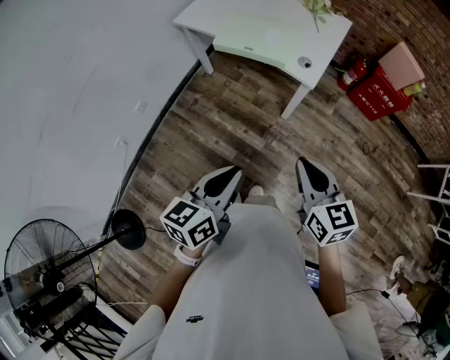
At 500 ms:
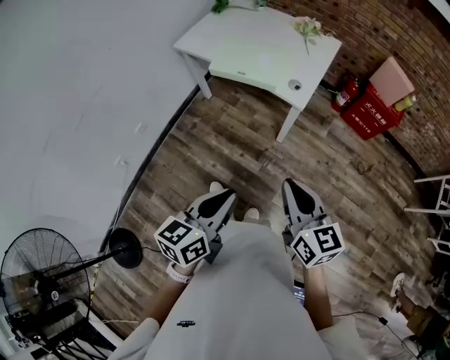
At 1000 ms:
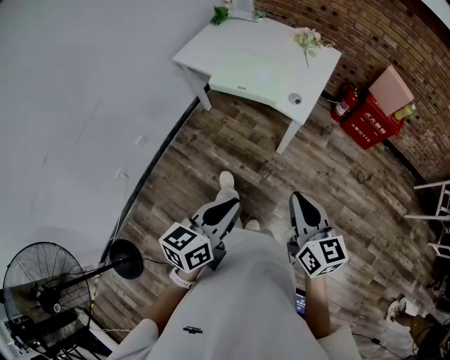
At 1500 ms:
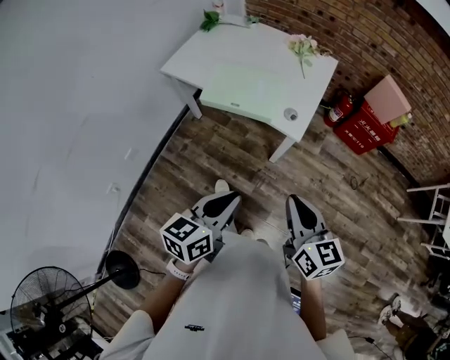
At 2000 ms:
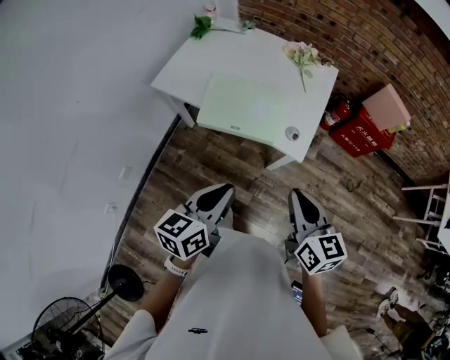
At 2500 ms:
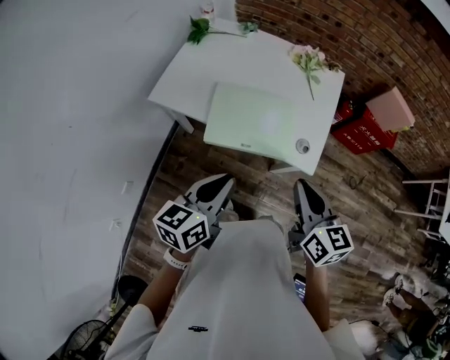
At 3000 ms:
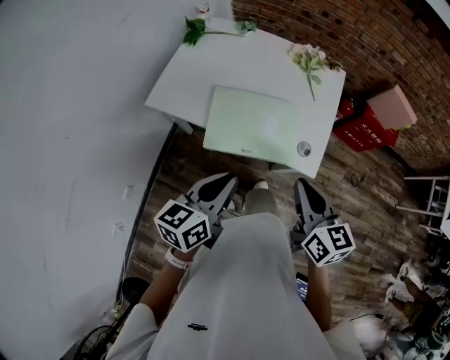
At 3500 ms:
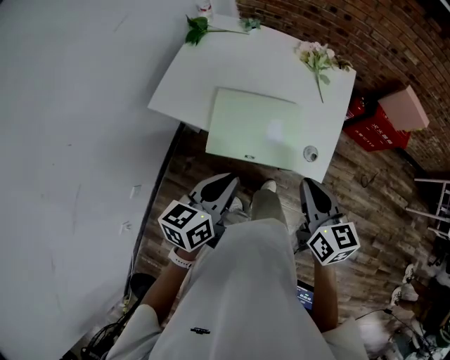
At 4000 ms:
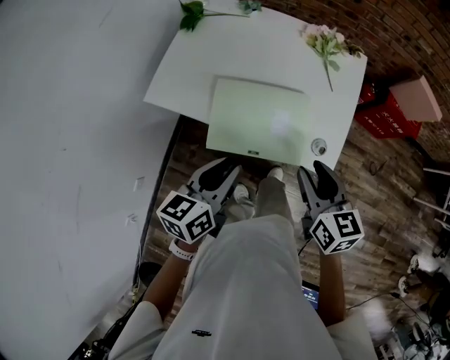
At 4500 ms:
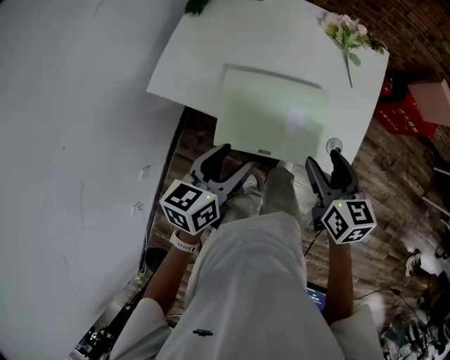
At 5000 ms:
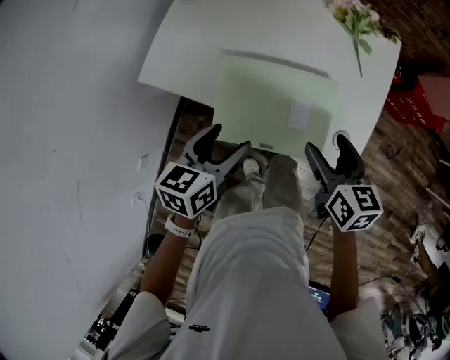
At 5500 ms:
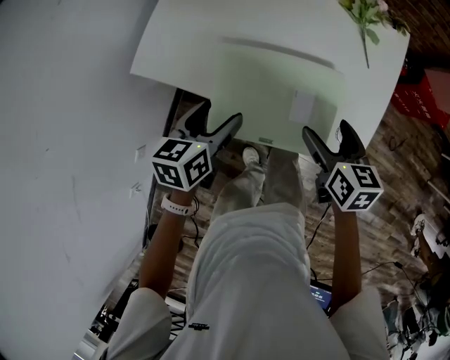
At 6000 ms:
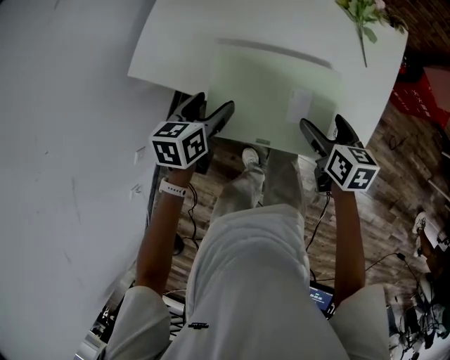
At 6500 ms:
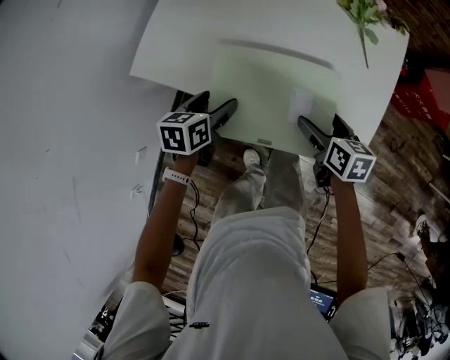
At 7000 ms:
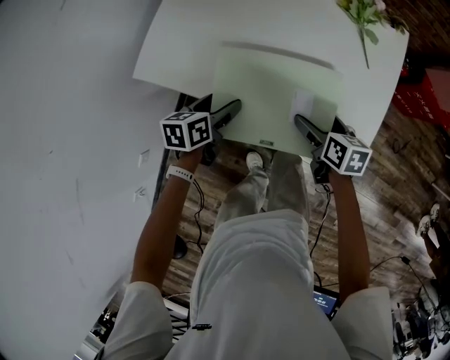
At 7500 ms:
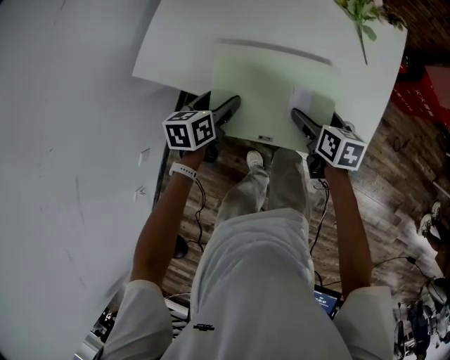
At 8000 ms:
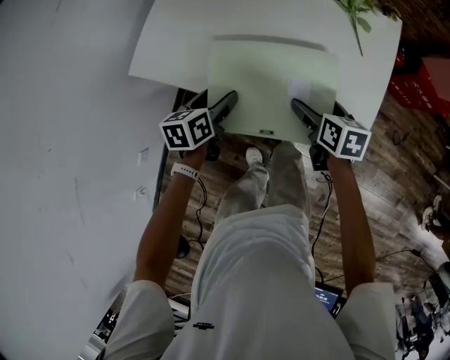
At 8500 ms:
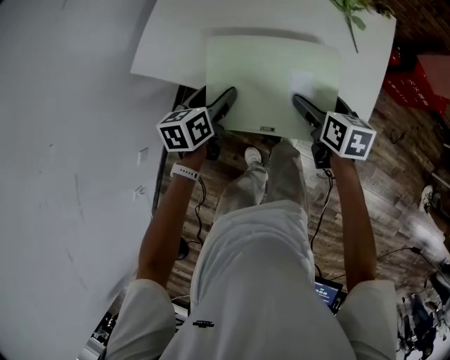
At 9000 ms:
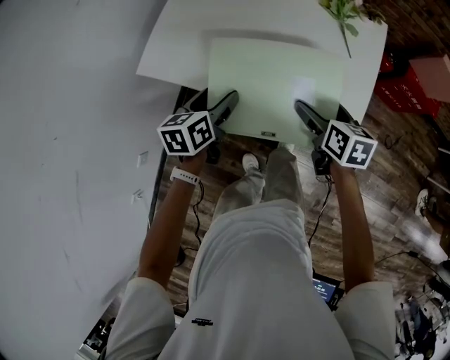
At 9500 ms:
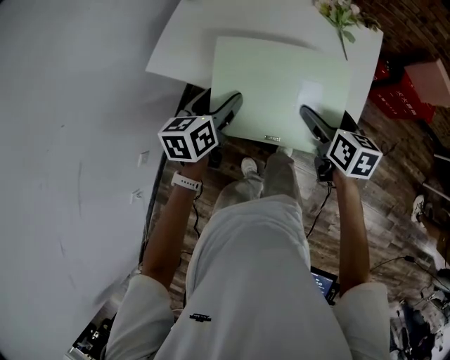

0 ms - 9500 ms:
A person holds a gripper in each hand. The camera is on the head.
0 ms - 2000 ms: Both grippers move forward, roughly 25 cm.
2000 ms - 4000 ms: The left gripper shifts about 20 cm forward and to the left. Meanwhile the right gripper moves forward, some 20 cm.
4000 ms - 5500 ms: The right gripper is displaced downward and forward by about 15 cm, and opens its fingers, while the left gripper heads downward, forward and to the left, covering some 15 cm, and opens up.
5500 ms - 7500 ms: Both grippers travel together downward, about 10 cm.
7500 ms - 9500 ms: Both grippers travel together upward, approximately 15 cm.

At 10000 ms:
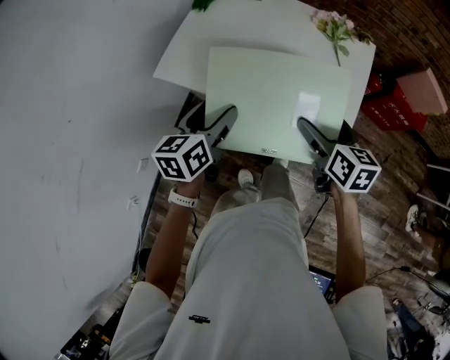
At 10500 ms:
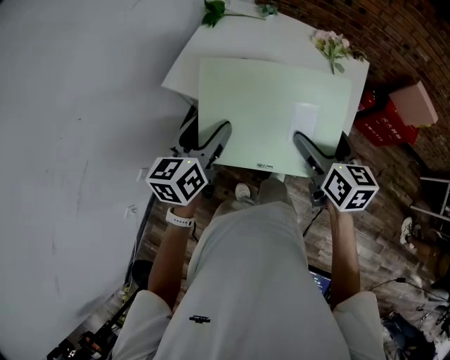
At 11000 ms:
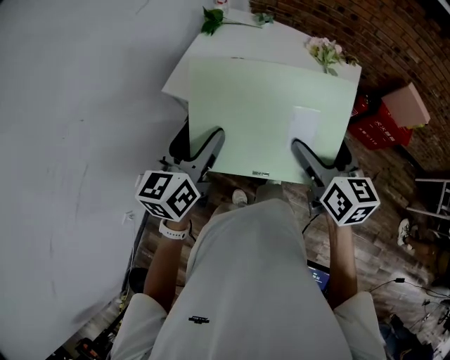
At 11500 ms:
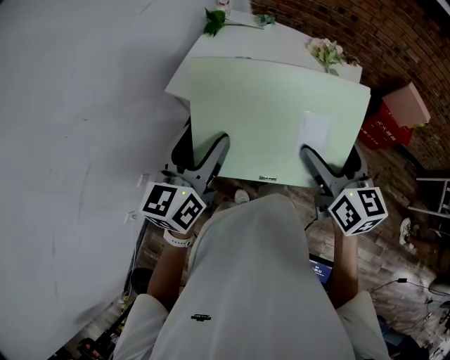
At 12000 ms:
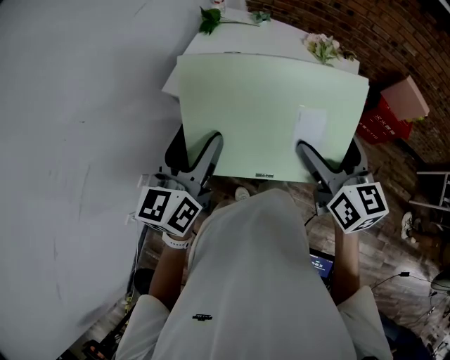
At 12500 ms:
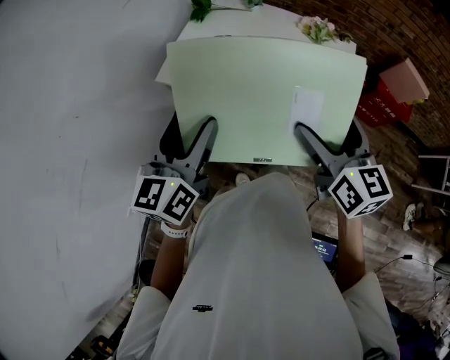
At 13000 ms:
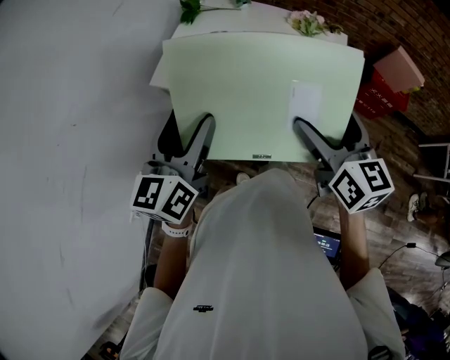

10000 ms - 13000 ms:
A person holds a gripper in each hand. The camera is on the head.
10000 ms - 11500 ms: Both grippers travel together upward and backward, roughly 15 cm. The left gripper rotates roughly 20 degrees. Meanwhile the right gripper rotates some 20 degrees.
11500 ms - 13000 ms: There are only small adjustments of the grippers.

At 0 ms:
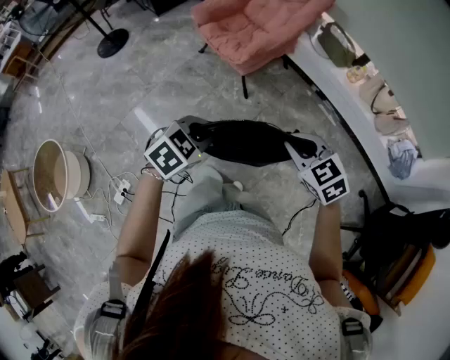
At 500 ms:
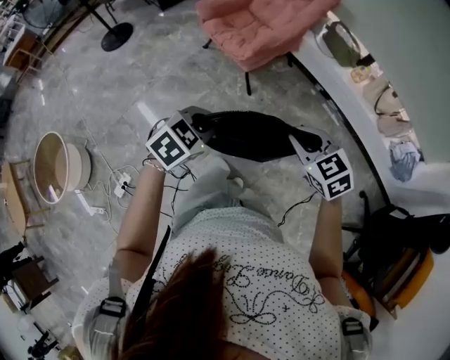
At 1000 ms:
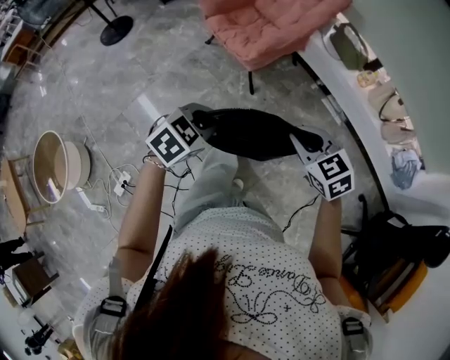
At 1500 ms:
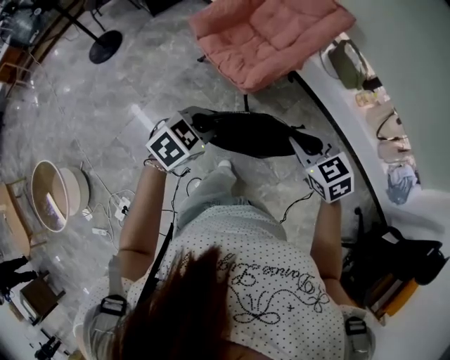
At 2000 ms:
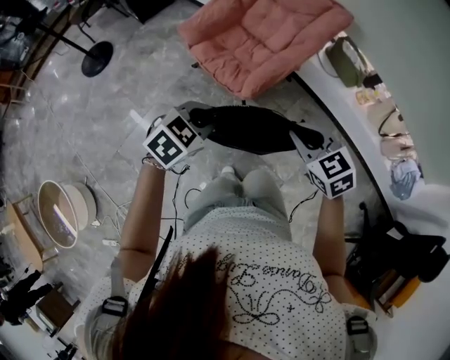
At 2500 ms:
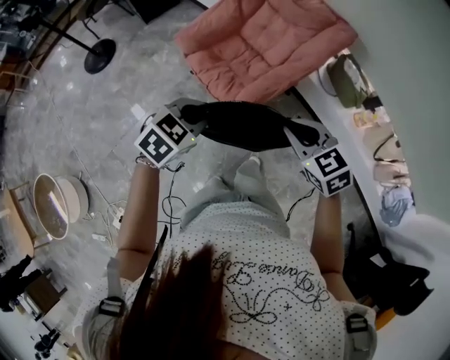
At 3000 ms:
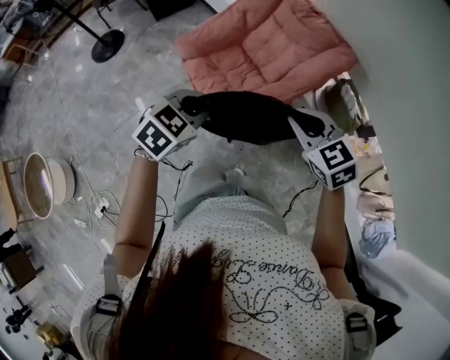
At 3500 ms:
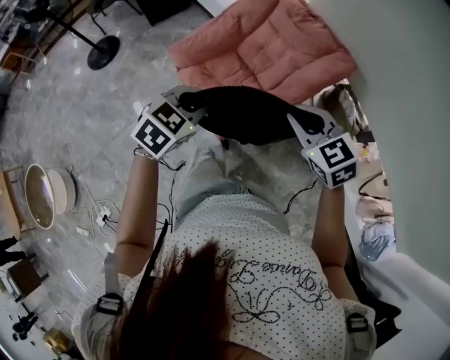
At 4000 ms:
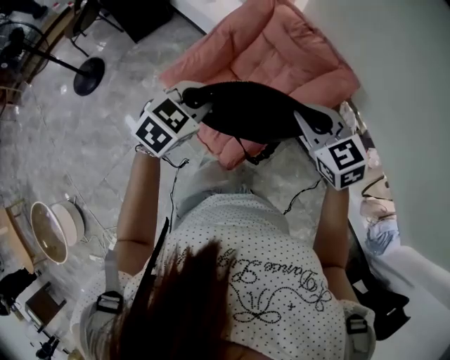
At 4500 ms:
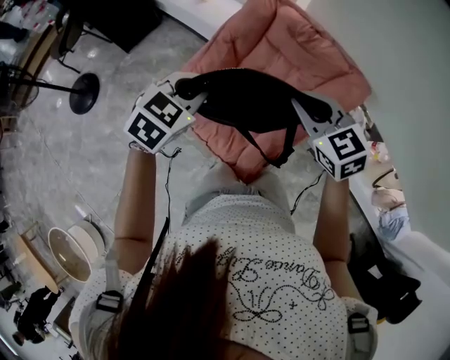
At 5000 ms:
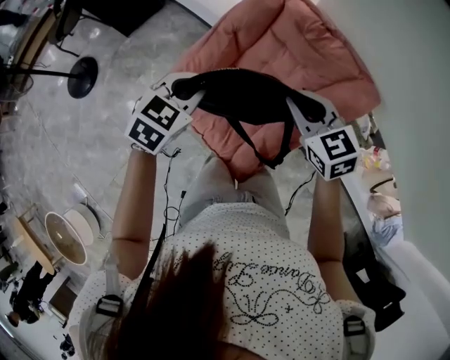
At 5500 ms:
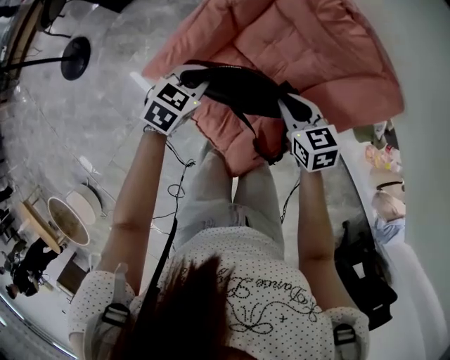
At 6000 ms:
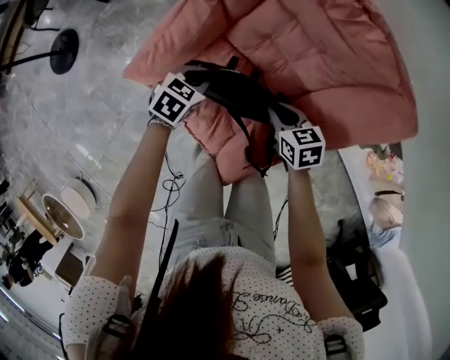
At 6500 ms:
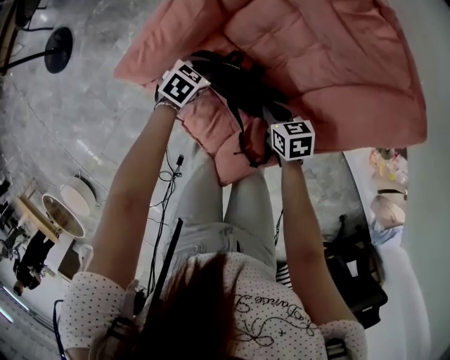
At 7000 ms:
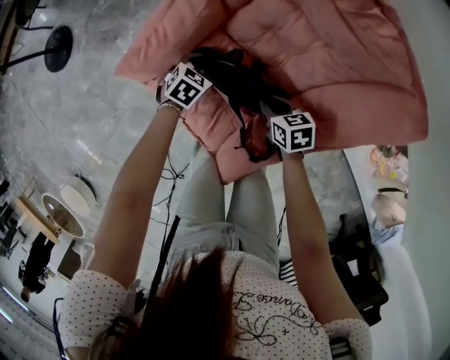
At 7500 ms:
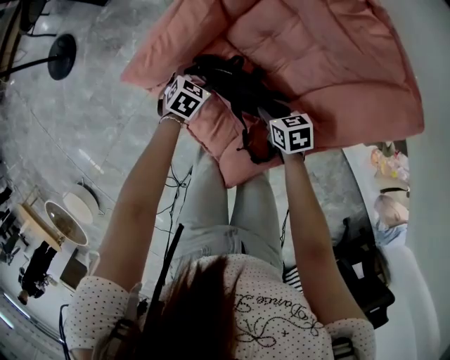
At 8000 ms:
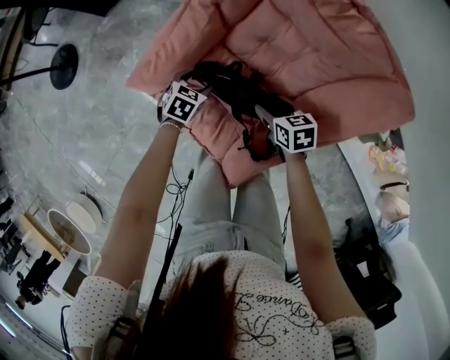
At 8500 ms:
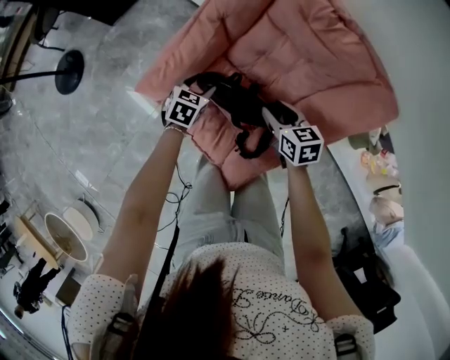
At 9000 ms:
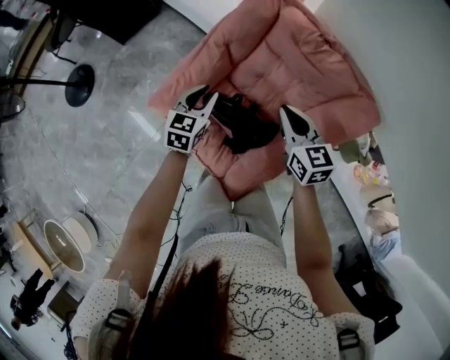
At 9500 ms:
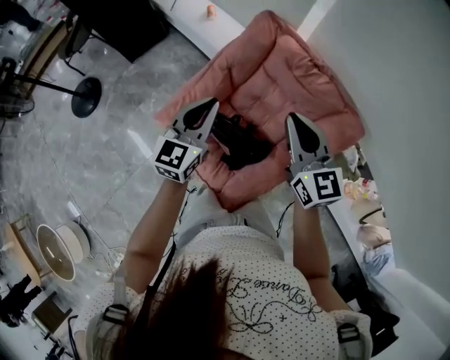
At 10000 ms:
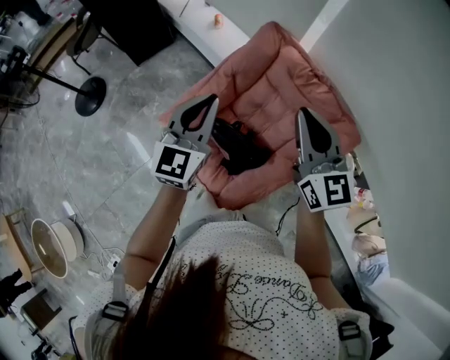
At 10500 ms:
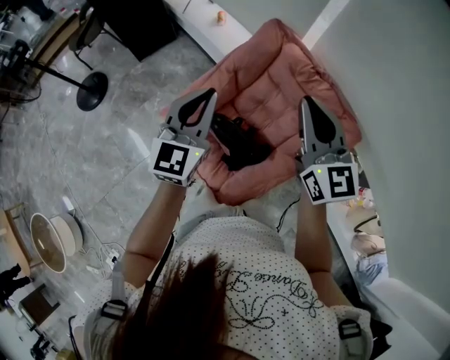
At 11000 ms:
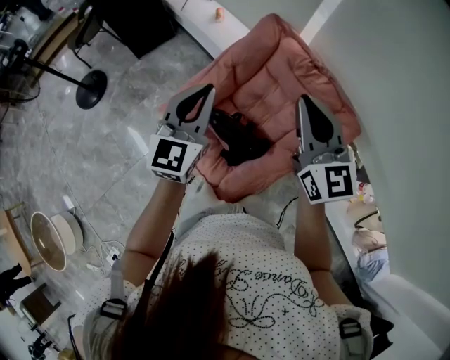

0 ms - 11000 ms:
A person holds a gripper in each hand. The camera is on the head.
0 ms - 2000 ms: Both grippers travel together forward, approximately 35 cm.
2000 ms - 3500 ms: The right gripper shifts about 30 cm forward; the left gripper shifts some 25 cm forward and to the right.
3500 ms - 5500 ms: The grippers both shift forward and downward by about 35 cm. The right gripper swivels about 30 degrees.
5500 ms - 7500 ms: The two grippers go some 20 cm downward. The right gripper rotates about 20 degrees, and opens, while the left gripper opens up.
7500 ms - 9000 ms: Both grippers move upward, some 30 cm. The right gripper rotates about 40 degrees, and closes. The left gripper tilts its fingers about 30 degrees upward, and closes its fingers.
9000 ms - 11000 ms: Both grippers travel together upward, some 25 cm. The right gripper rotates approximately 30 degrees. The left gripper rotates roughly 30 degrees, and closes.

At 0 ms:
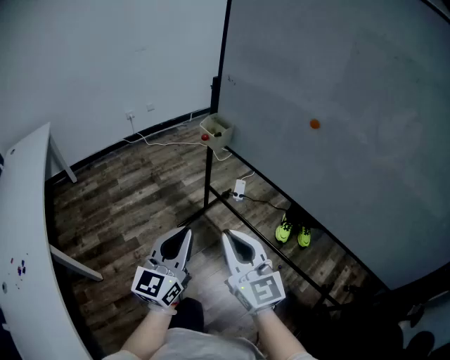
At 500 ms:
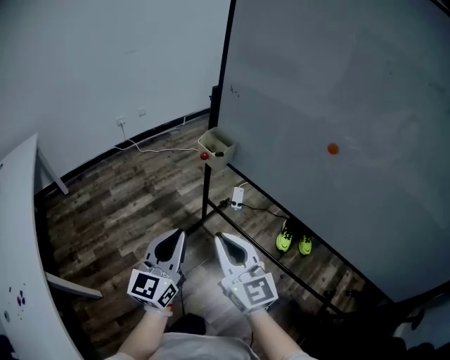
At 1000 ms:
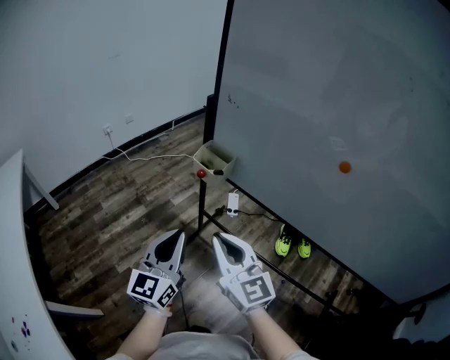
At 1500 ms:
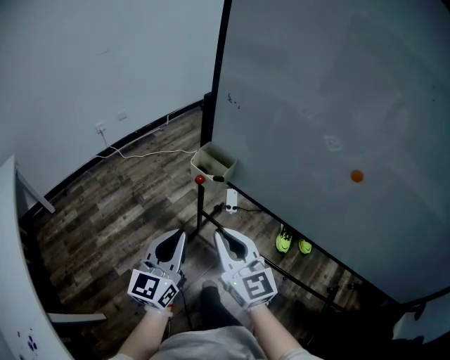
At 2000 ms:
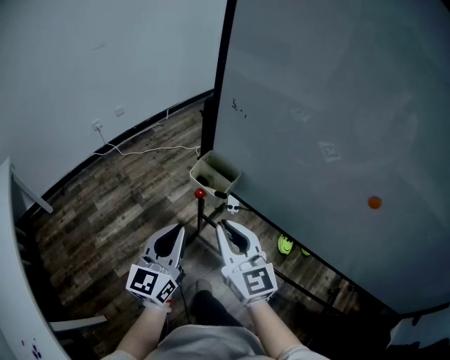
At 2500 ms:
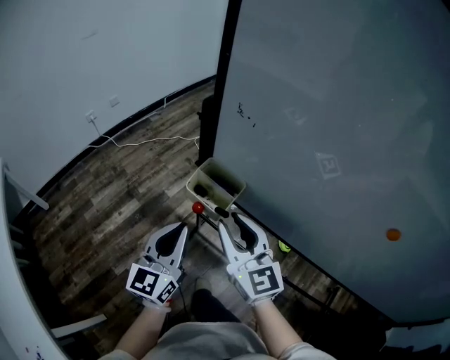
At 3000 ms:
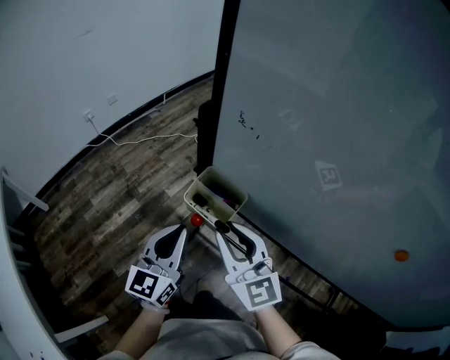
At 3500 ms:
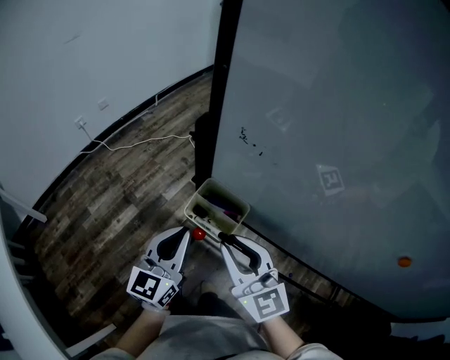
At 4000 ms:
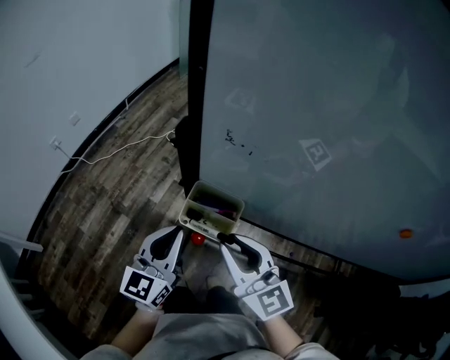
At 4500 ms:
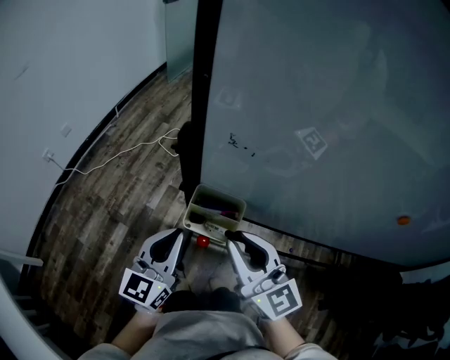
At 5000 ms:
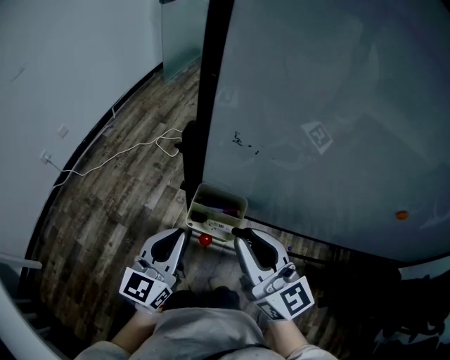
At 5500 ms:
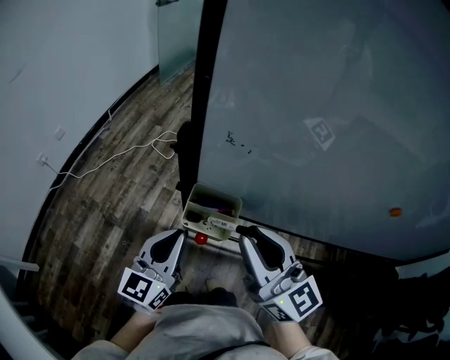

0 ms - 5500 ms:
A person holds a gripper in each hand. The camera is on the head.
0 ms - 2000 ms: Both grippers are carried forward, approximately 40 cm.
2000 ms - 3500 ms: Both grippers travel together forward, approximately 15 cm.
3500 ms - 5500 ms: The right gripper goes approximately 10 cm upward.
